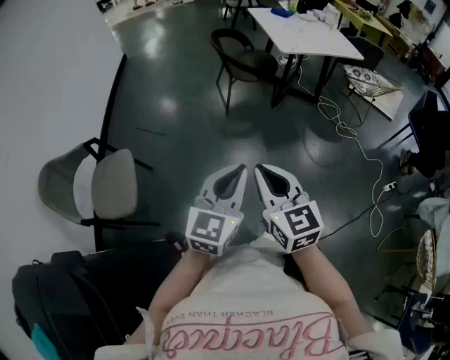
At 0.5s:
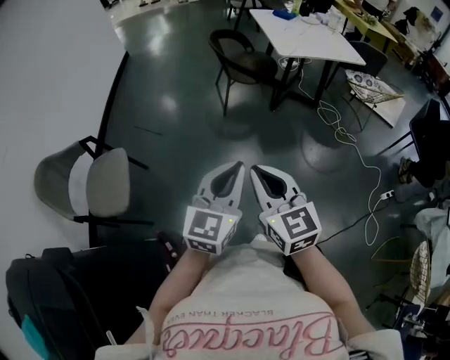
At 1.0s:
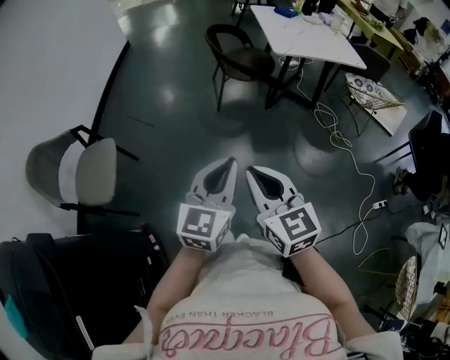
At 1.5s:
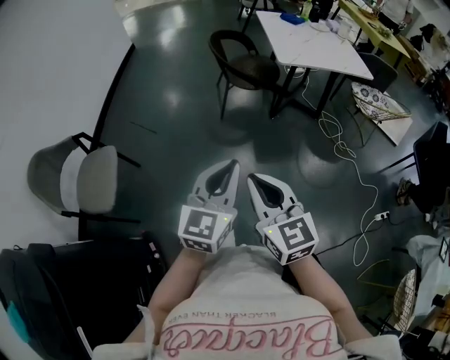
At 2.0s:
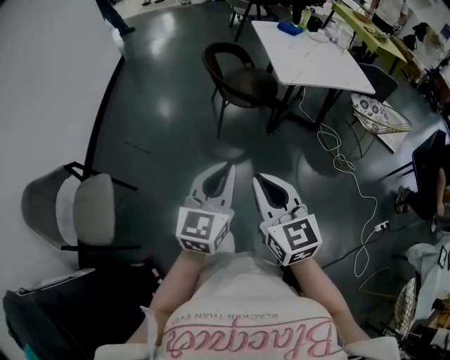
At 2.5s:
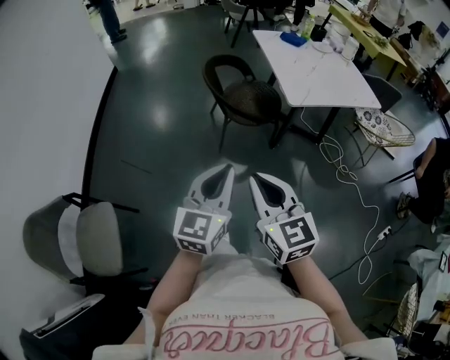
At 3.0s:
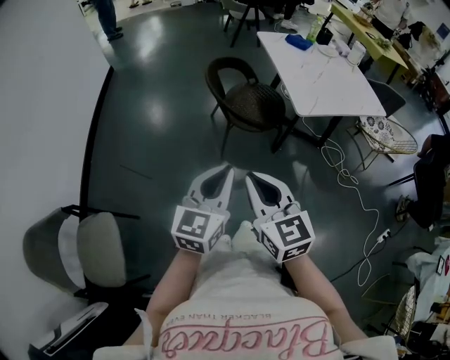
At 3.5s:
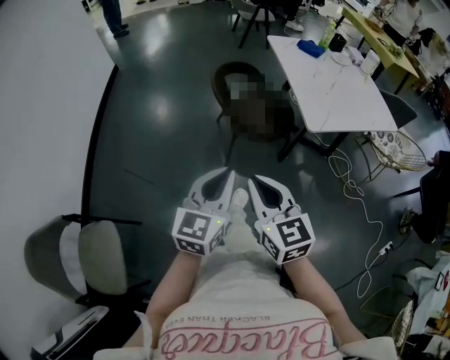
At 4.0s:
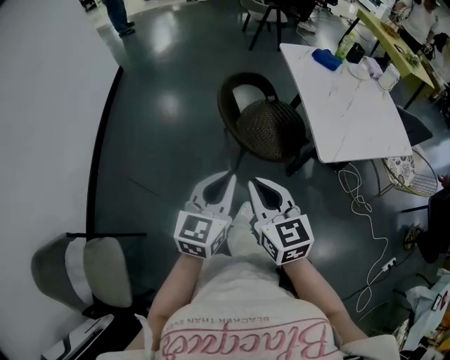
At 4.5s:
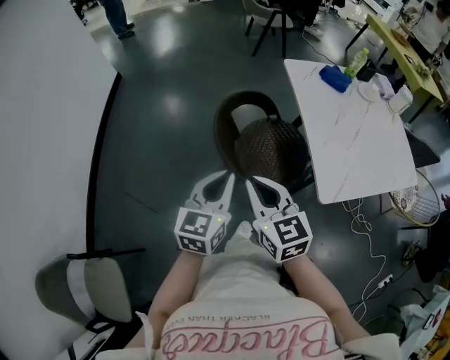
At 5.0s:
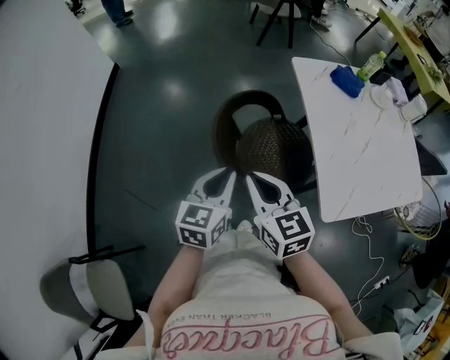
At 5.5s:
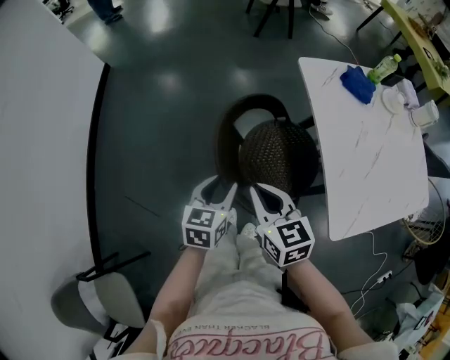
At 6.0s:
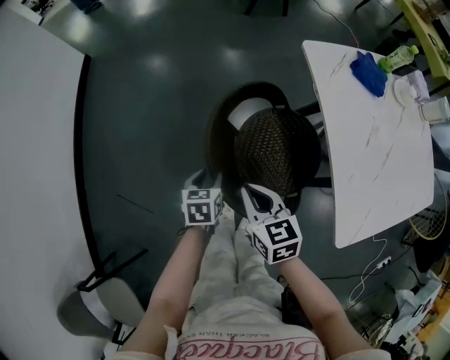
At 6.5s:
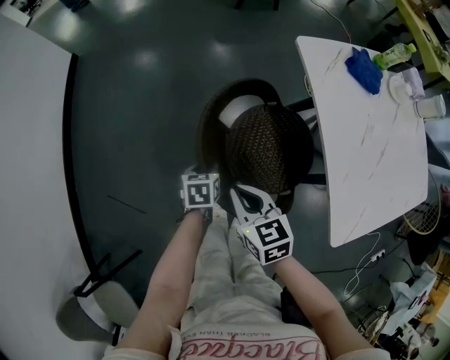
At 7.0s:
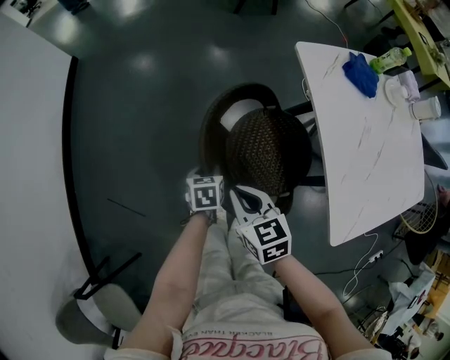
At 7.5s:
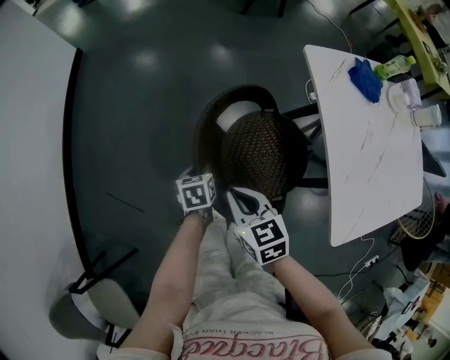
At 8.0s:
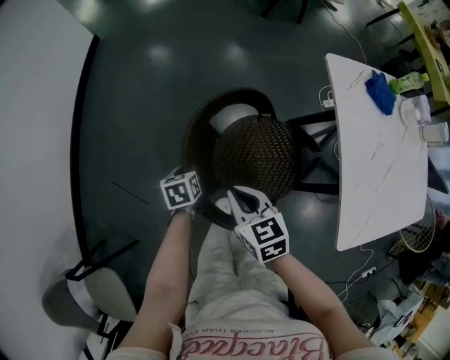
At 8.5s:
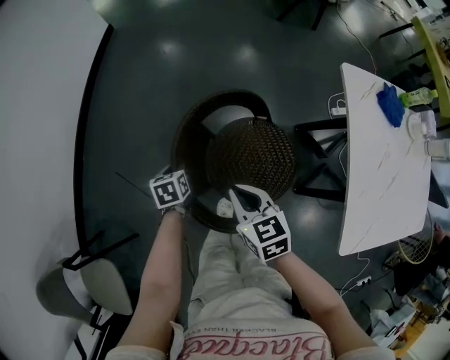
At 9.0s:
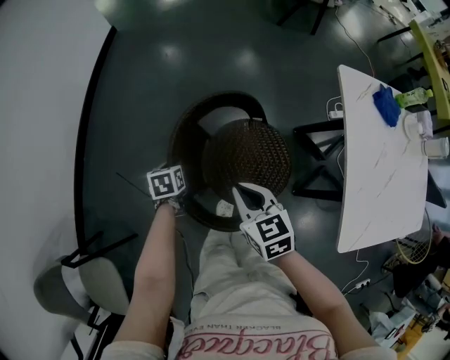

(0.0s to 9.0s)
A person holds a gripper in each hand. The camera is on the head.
0.0s - 2.0s: The right gripper shifts roughly 25 cm forward and to the right. Meanwhile the left gripper moves forward, approximately 25 cm.
2.0s - 4.5s: The pair of grippers is taken forward, approximately 60 cm.
4.5s - 7.0s: The right gripper goes approximately 30 cm forward and downward, and rotates roughly 20 degrees. Meanwhile the left gripper shifts about 40 cm downward and forward, angles its fingers downward, by roughly 40 degrees, and opens.
7.0s - 9.0s: The left gripper is displaced to the left by some 25 cm, and changes its angle by roughly 20 degrees. Meanwhile the right gripper is displaced to the left by some 10 cm.

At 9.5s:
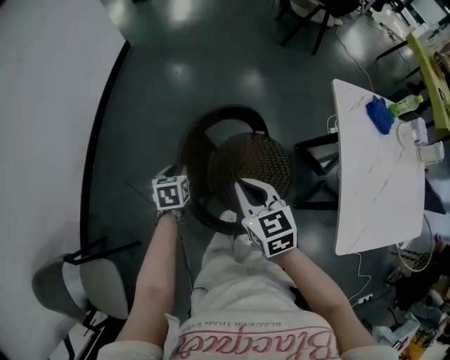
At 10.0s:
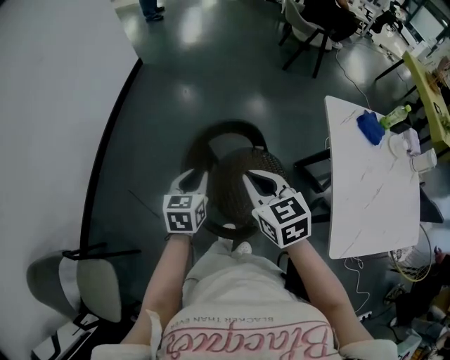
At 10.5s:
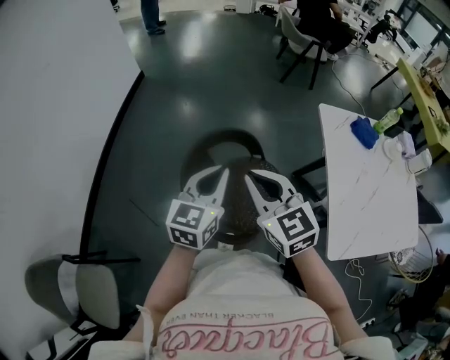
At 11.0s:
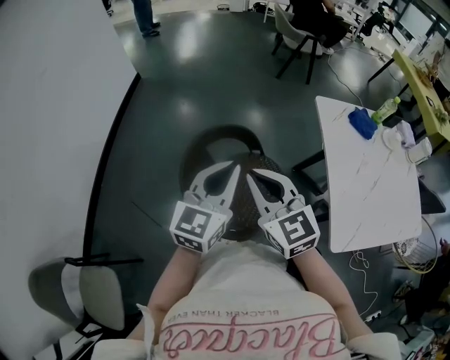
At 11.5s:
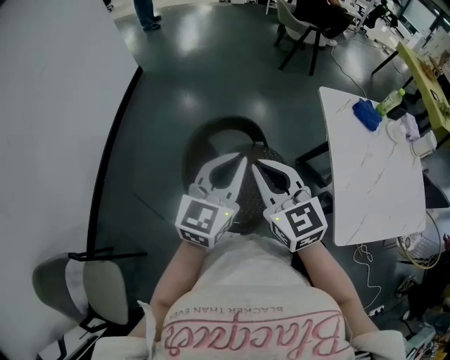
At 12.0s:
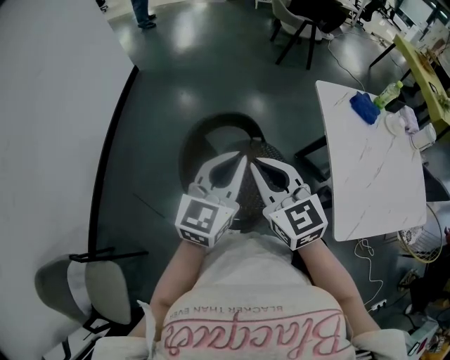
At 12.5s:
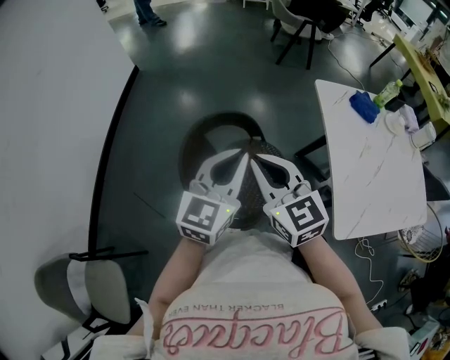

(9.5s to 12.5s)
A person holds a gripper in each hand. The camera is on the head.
9.5s - 11.0s: The left gripper moves upward and to the right, about 35 cm, angles its fingers upward, by about 50 degrees, and closes, while the right gripper shifts about 15 cm upward, and swivels some 20 degrees.
11.0s - 12.5s: The grippers make only small movements.

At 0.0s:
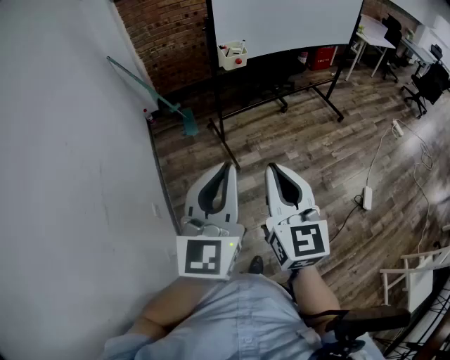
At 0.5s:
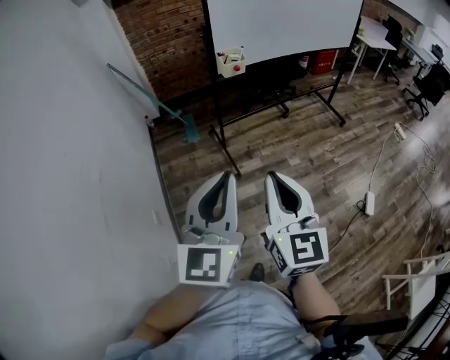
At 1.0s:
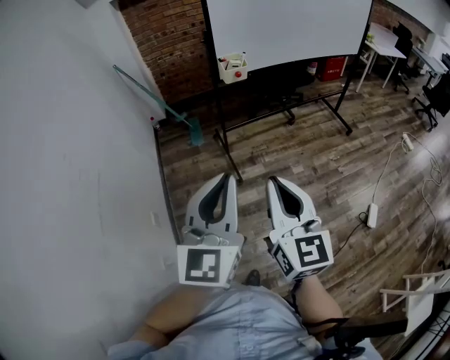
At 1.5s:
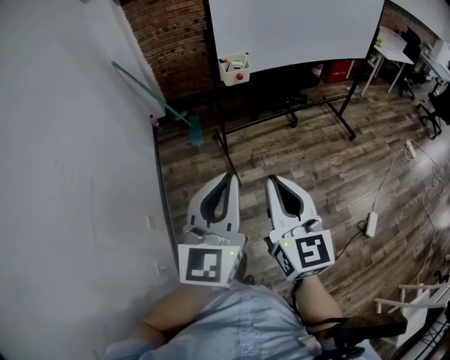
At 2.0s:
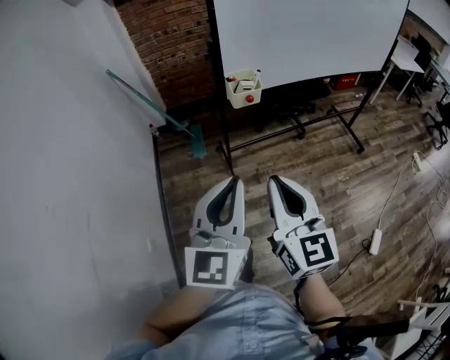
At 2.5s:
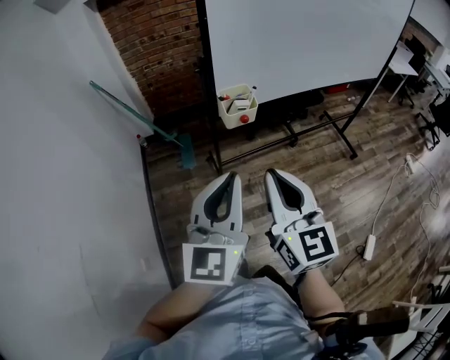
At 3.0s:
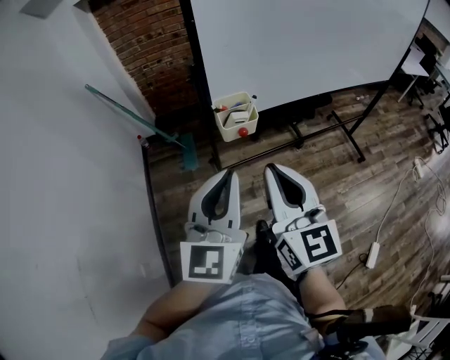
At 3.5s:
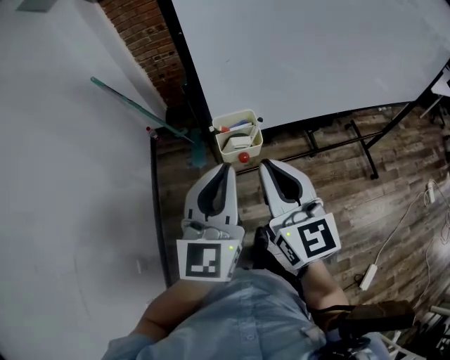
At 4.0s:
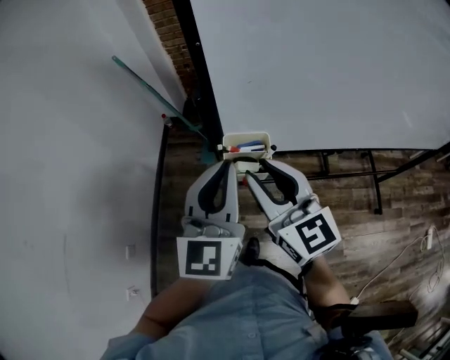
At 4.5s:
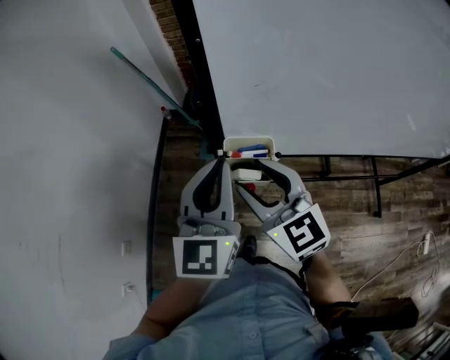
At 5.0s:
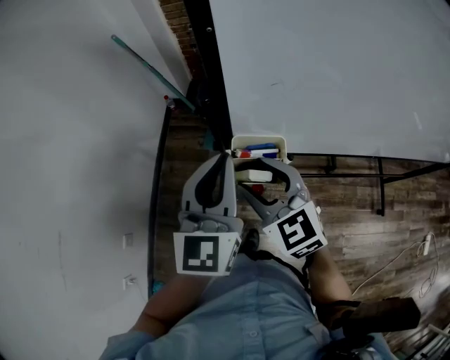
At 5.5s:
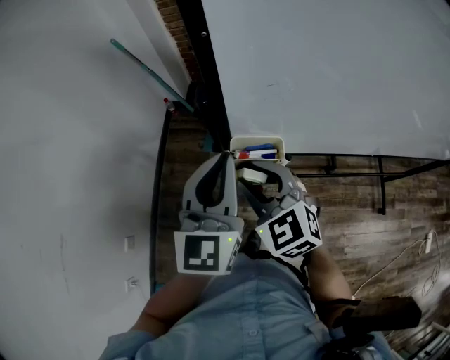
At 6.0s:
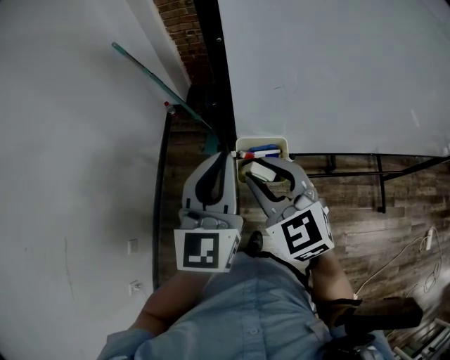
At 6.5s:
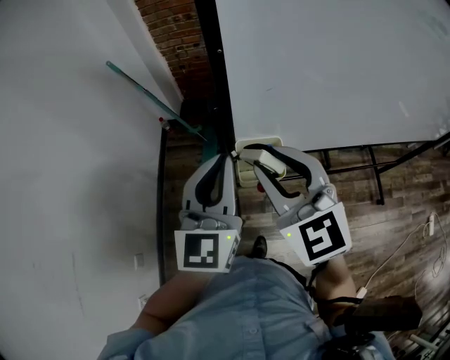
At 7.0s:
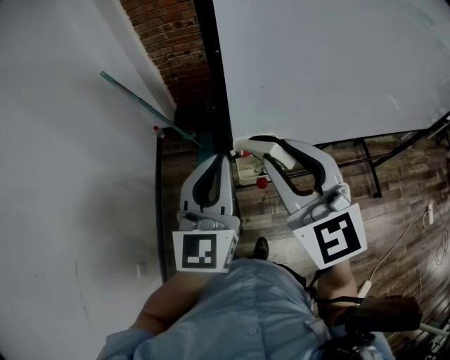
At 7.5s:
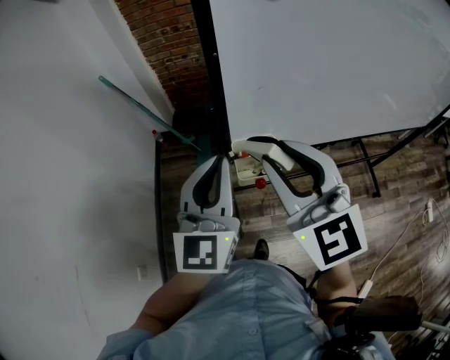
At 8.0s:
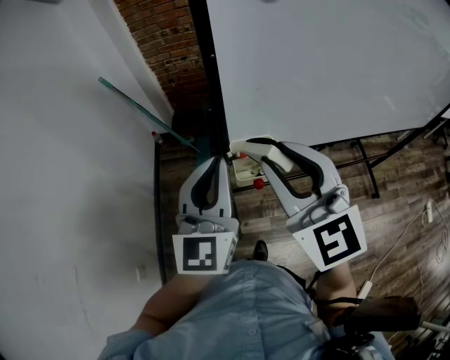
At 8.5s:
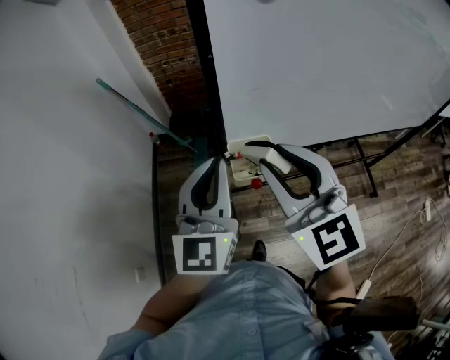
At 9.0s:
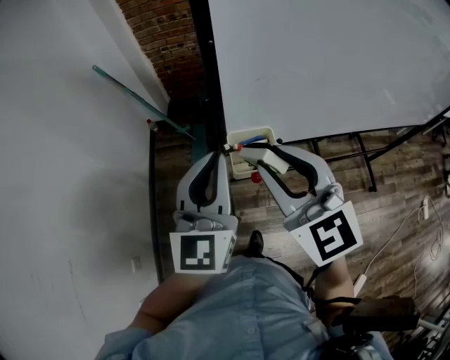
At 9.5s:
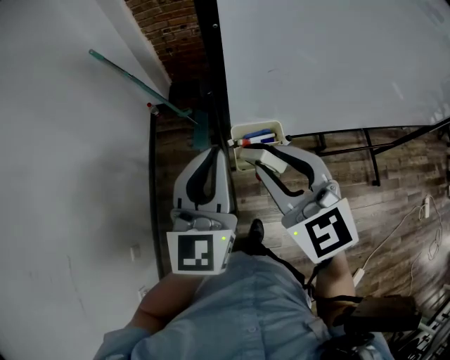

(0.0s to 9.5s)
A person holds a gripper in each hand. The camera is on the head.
0.0s - 2.0s: Both grippers travel together forward, approximately 25 cm.
2.0s - 4.0s: The right gripper changes place by roughly 35 cm, turns by roughly 30 degrees, and opens, while the left gripper moves some 35 cm, and changes its angle by some 20 degrees.
4.0s - 5.5s: The right gripper travels downward by some 10 cm, turns by approximately 30 degrees, and opens and closes again, while the left gripper heads forward, covering about 5 cm.
5.5s - 7.5s: The right gripper heads upward, covering about 15 cm, and turns by some 30 degrees, while the left gripper is displaced upward by approximately 5 cm.
7.5s - 9.5s: The right gripper travels downward by approximately 10 cm.

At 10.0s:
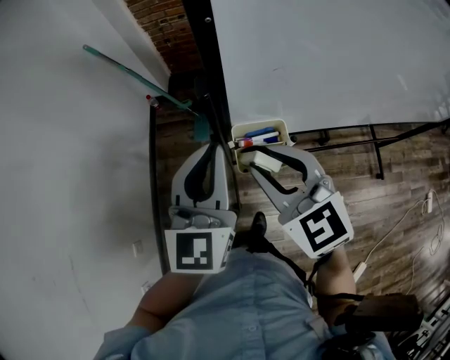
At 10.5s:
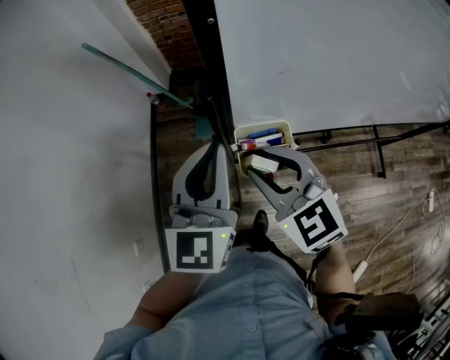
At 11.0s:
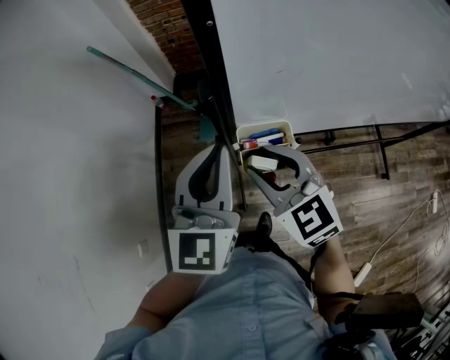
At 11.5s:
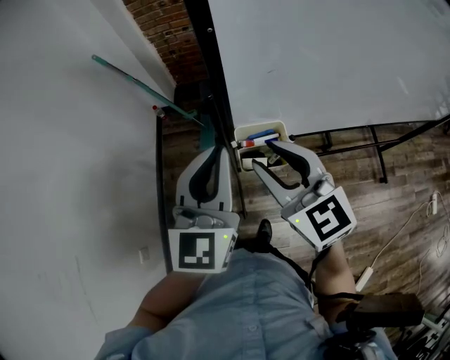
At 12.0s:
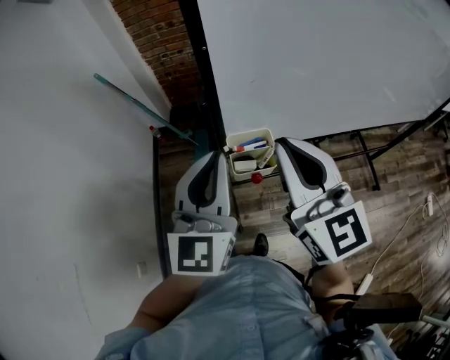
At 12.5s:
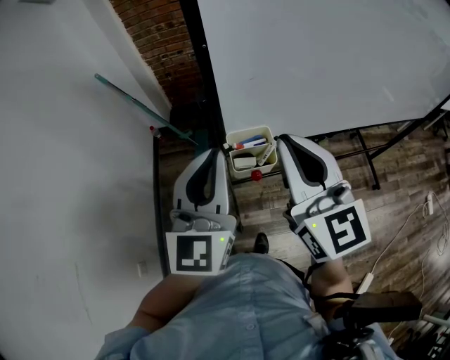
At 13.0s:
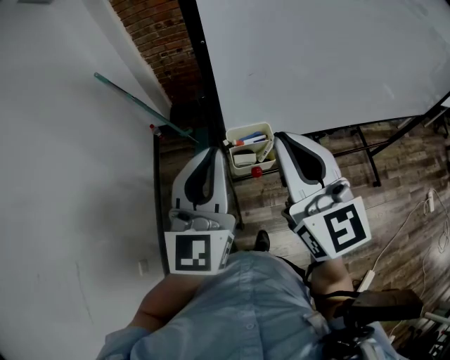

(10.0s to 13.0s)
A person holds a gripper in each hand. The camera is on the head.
10.0s - 11.5s: There are only small adjustments of the grippers.
11.5s - 13.0s: The left gripper shifts by some 5 cm. The right gripper goes approximately 10 cm upward, turns by about 20 degrees, and closes up.

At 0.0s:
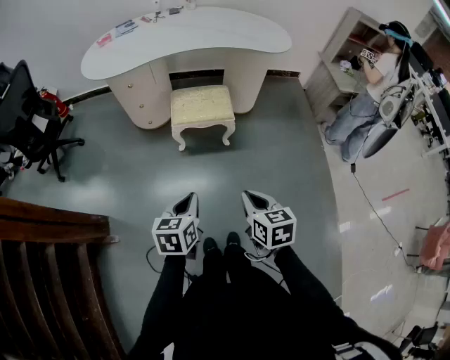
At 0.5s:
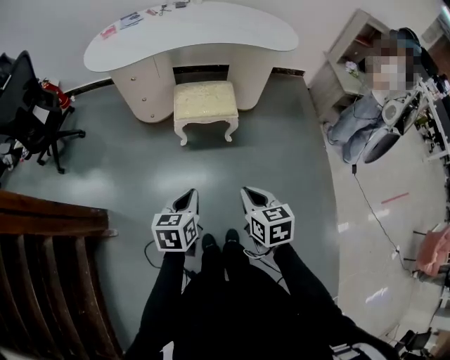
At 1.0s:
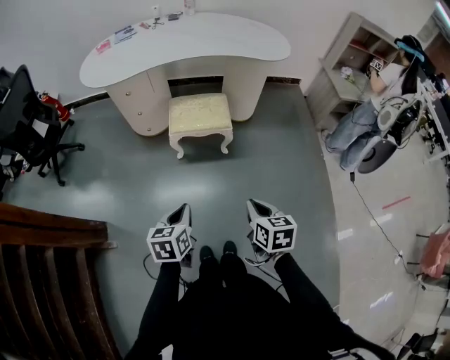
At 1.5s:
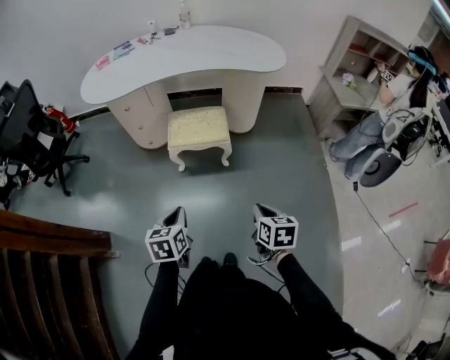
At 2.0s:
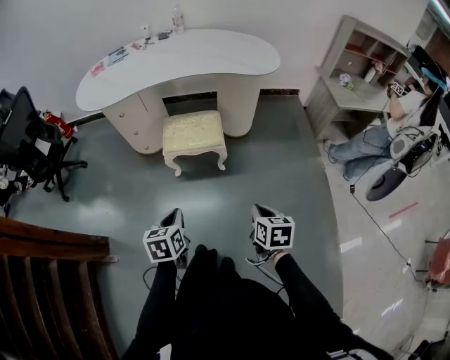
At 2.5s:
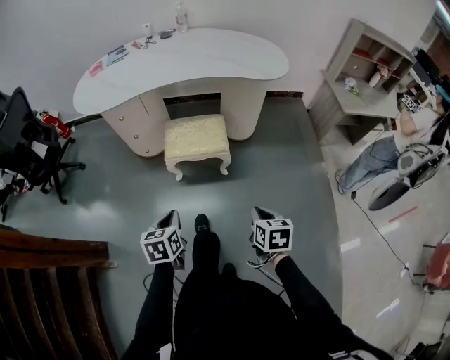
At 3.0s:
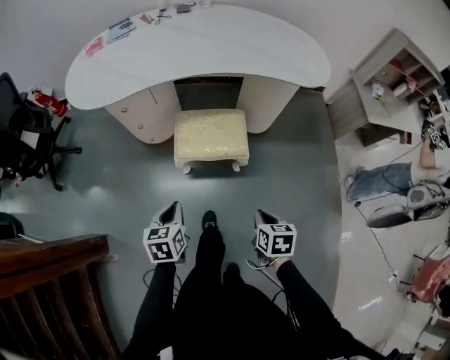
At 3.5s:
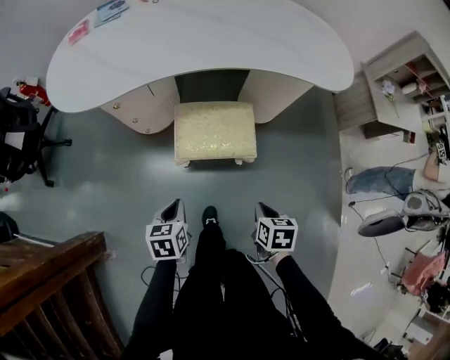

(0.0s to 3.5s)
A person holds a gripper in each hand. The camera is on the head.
0.0s - 2.0s: The left gripper is displaced forward by roughly 5 cm, while the right gripper goes roughly 15 cm to the right and forward.
2.0s - 3.5s: Both grippers move forward, downward and to the left, about 35 cm.
